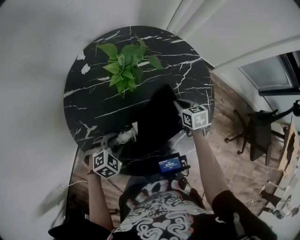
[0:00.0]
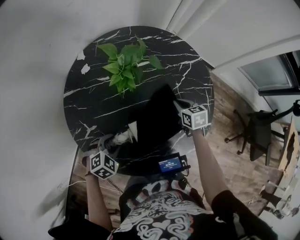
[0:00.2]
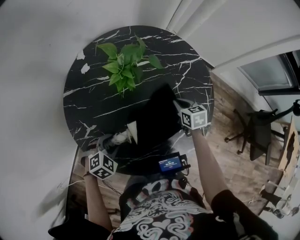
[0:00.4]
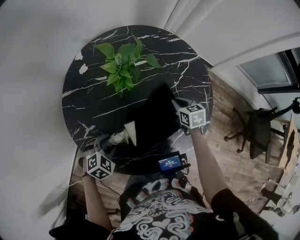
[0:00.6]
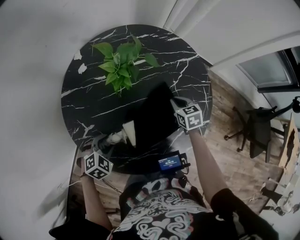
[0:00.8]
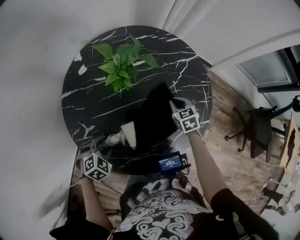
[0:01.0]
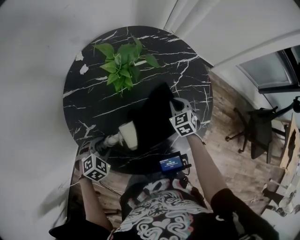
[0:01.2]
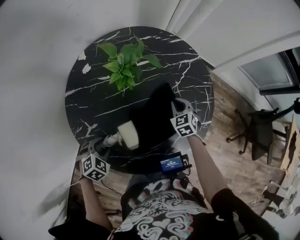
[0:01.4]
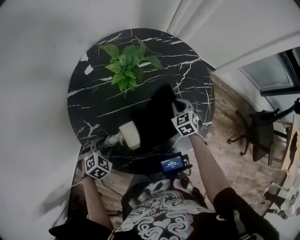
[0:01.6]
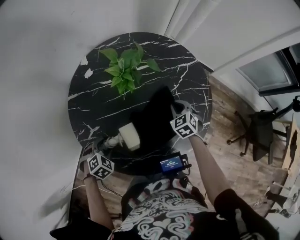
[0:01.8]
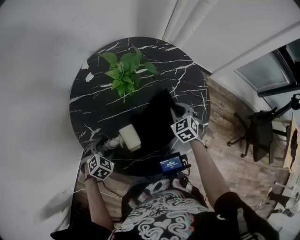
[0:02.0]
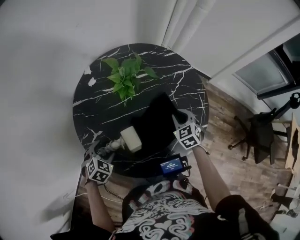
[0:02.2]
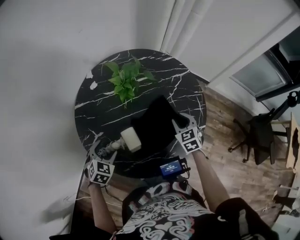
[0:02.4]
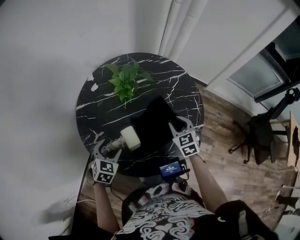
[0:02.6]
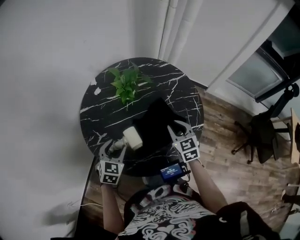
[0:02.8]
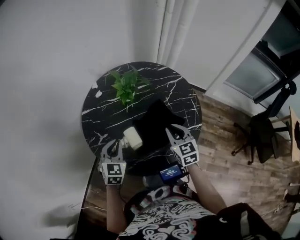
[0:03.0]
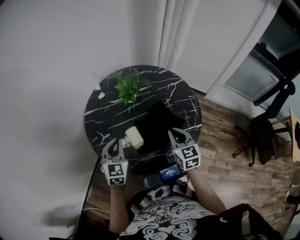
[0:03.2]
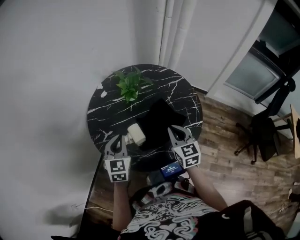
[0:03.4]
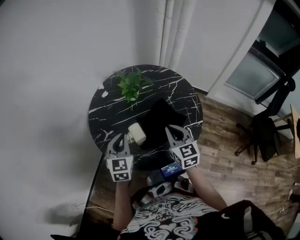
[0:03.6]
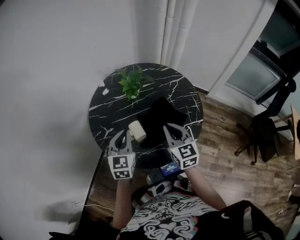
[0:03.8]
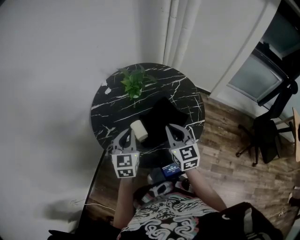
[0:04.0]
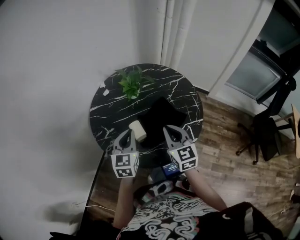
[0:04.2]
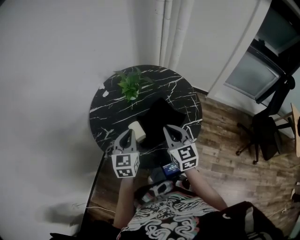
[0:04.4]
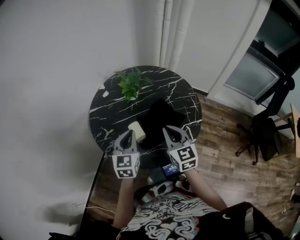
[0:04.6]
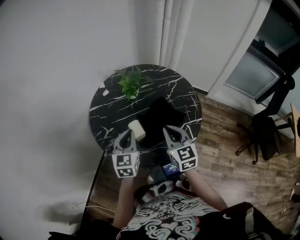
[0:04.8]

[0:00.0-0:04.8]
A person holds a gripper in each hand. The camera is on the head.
0:00.0 to 0:01.6: The left gripper moves to the left, some 5 cm, while the right gripper rotates approximately 30 degrees.
0:01.6 to 0:03.2: The left gripper moves upward, about 20 cm, tilts its fingers roughly 50 degrees upward, and closes up, while the right gripper heads upward and backward, covering roughly 25 cm, and rotates about 30 degrees.
0:03.2 to 0:04.8: The left gripper changes place by roughly 5 cm. Meanwhile the right gripper heads upward, covering about 5 cm.

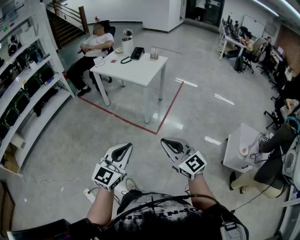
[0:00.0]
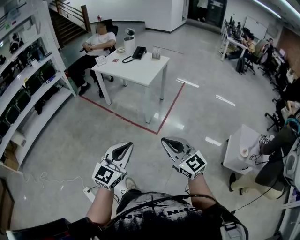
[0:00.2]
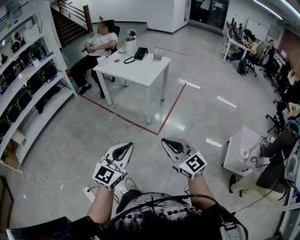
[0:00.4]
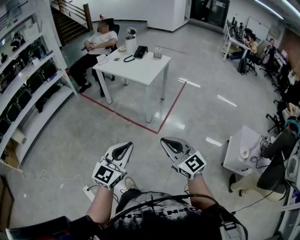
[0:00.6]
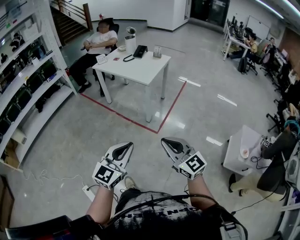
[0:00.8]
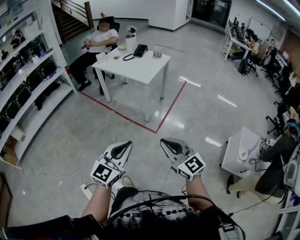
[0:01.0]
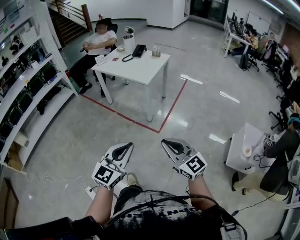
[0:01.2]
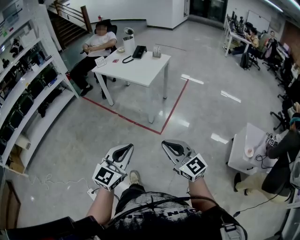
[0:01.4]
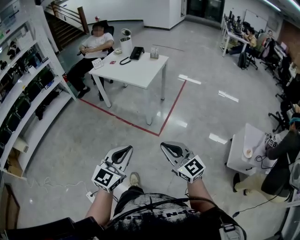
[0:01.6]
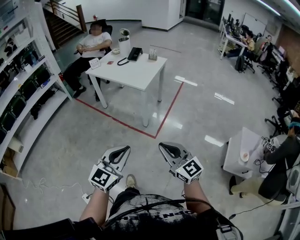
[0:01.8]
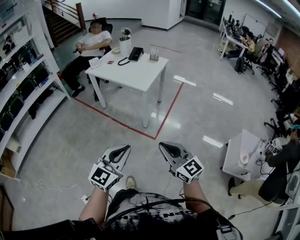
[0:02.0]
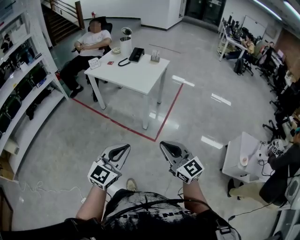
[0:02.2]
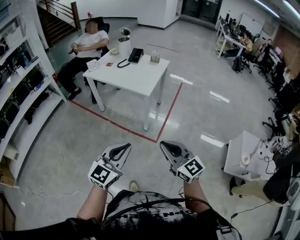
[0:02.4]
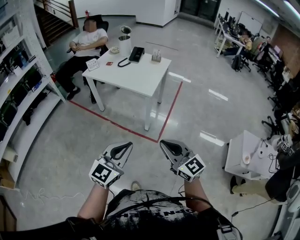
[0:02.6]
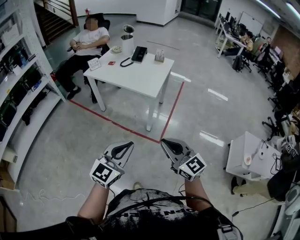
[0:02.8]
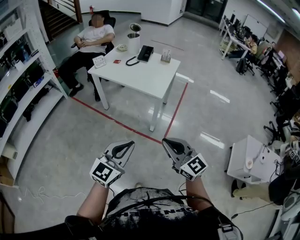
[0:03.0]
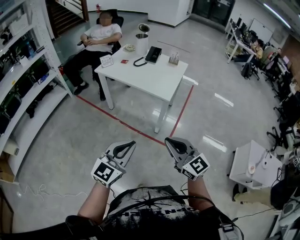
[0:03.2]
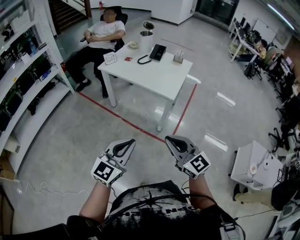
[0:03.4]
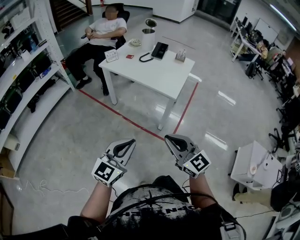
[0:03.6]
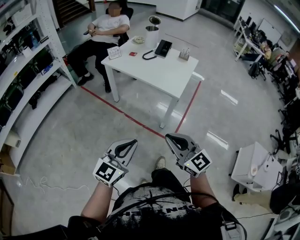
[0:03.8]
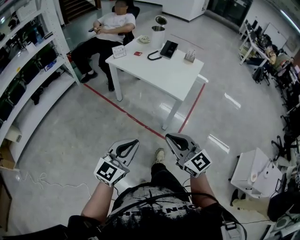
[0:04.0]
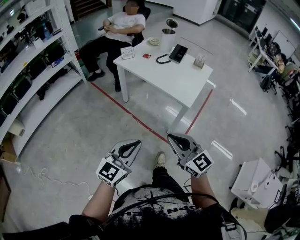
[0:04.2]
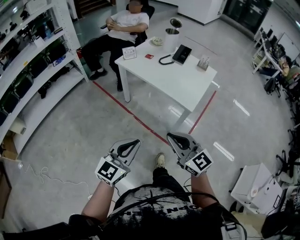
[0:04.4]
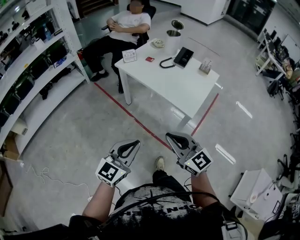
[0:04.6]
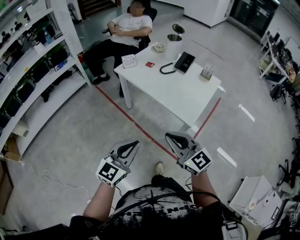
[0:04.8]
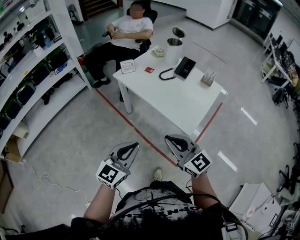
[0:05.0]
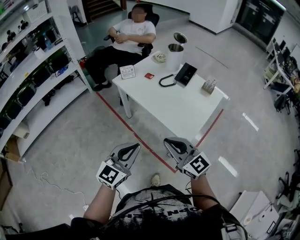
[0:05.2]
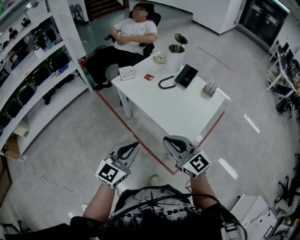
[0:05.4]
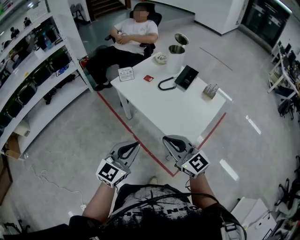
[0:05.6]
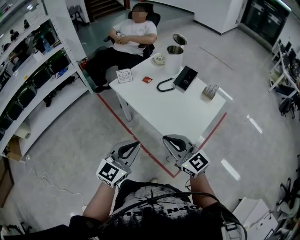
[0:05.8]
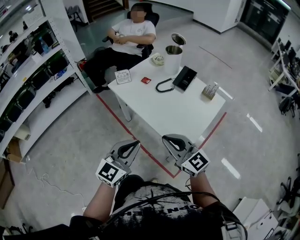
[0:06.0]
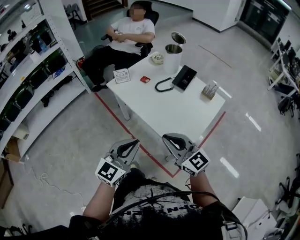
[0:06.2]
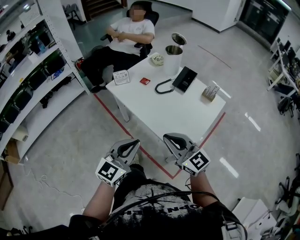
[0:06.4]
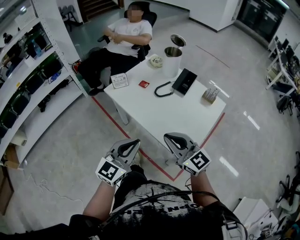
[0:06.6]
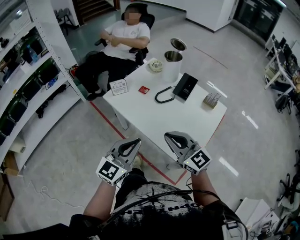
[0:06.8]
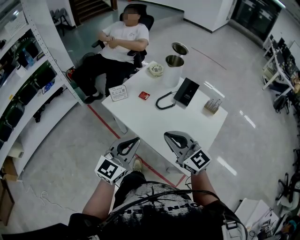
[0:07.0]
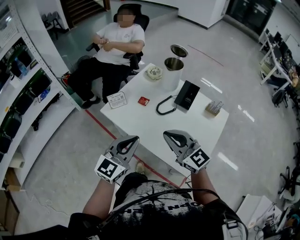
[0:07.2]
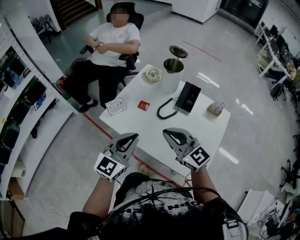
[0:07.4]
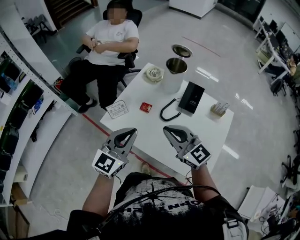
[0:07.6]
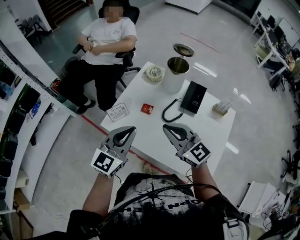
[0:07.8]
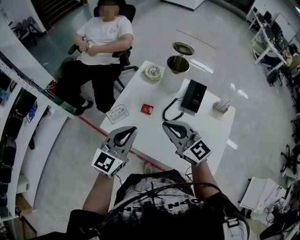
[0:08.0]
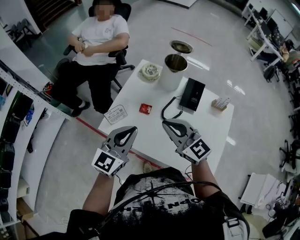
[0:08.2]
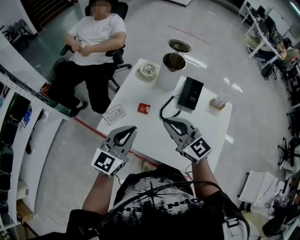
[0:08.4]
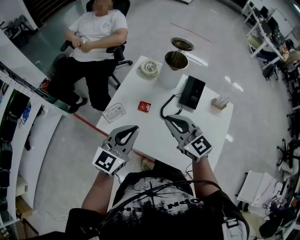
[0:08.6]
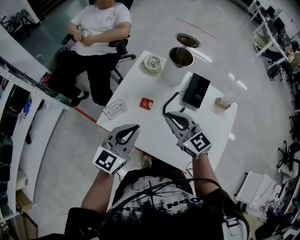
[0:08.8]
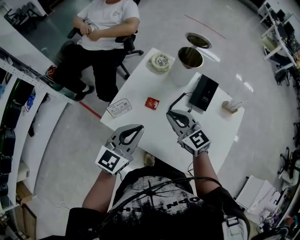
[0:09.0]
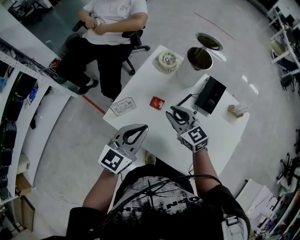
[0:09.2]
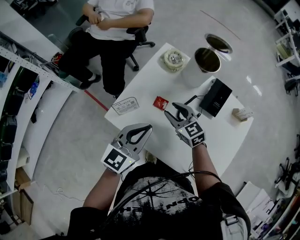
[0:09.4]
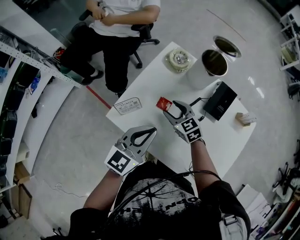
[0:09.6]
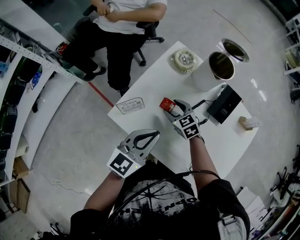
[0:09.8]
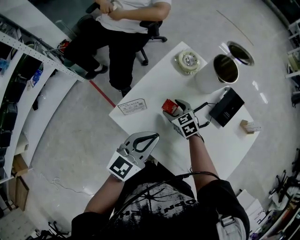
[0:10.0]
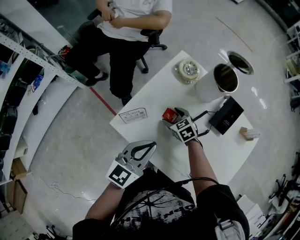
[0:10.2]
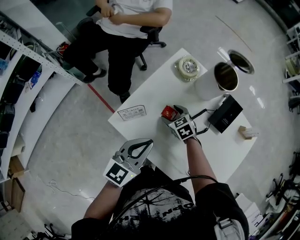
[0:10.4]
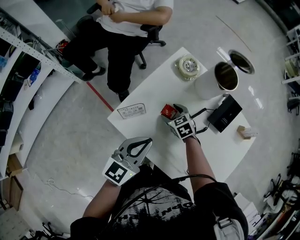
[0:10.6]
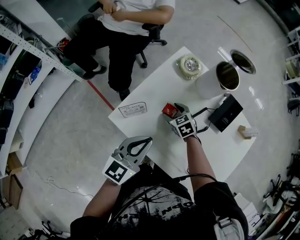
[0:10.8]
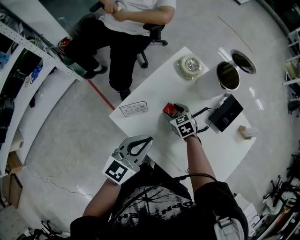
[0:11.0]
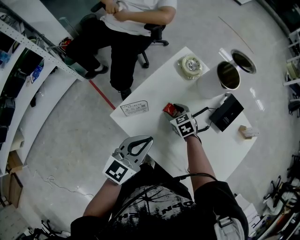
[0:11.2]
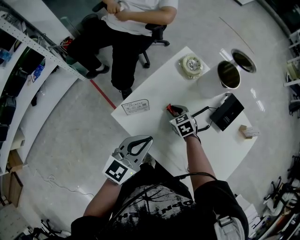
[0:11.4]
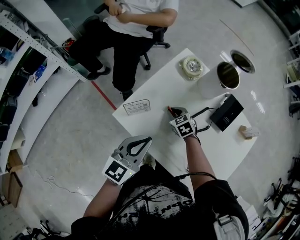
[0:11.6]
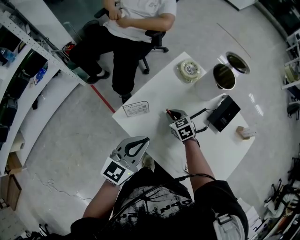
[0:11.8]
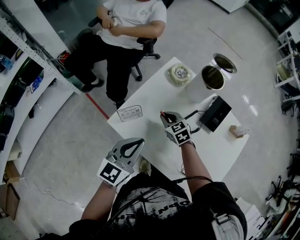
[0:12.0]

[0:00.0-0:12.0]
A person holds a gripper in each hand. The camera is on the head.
0:00.0 to 0:01.6: The right gripper shifts by roughly 5 cm. The left gripper ends up about 5 cm from where it was.
0:01.6 to 0:03.0: Both grippers travel together forward and to the left, approximately 25 cm.
0:03.0 to 0:04.4: Both grippers move forward and to the left, about 15 cm.
0:04.4 to 0:06.0: The two grippers go roughly 30 cm forward and to the right.
0:06.0 to 0:07.6: The grippers both shift forward by some 35 cm.
0:07.6 to 0:09.0: The left gripper travels forward and downward by about 10 cm, while the right gripper goes about 15 cm forward and downward.
0:09.0 to 0:10.4: The left gripper goes approximately 5 cm downward, while the right gripper is displaced downward and forward by approximately 25 cm, tilts its fingers roughly 40 degrees downward, and opens up.
0:10.4 to 0:12.0: The right gripper travels upward by roughly 5 cm, and closes.

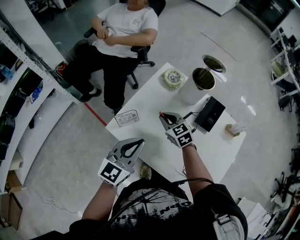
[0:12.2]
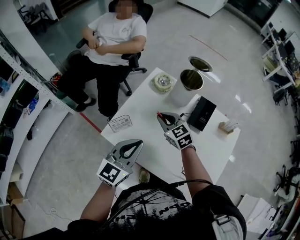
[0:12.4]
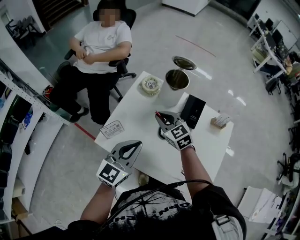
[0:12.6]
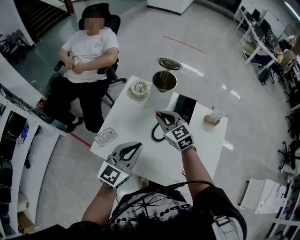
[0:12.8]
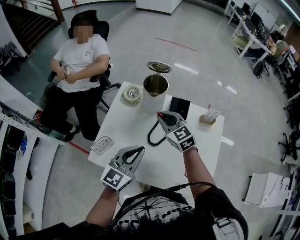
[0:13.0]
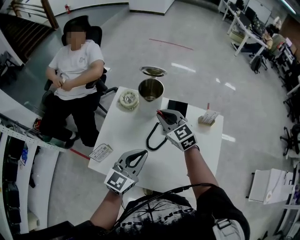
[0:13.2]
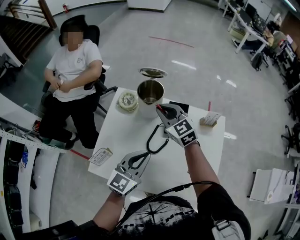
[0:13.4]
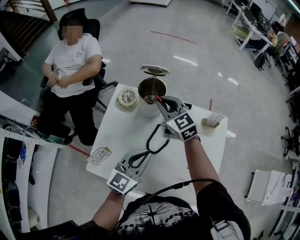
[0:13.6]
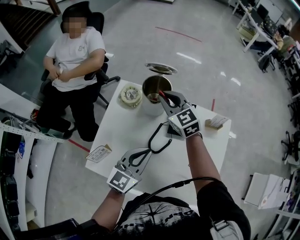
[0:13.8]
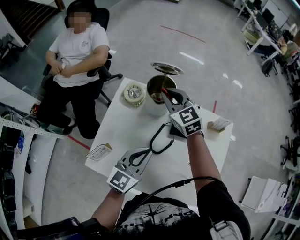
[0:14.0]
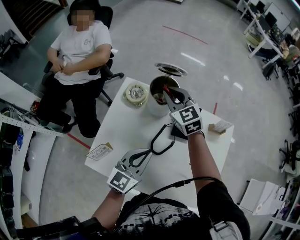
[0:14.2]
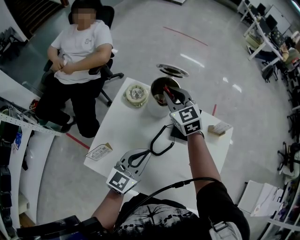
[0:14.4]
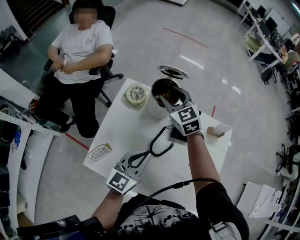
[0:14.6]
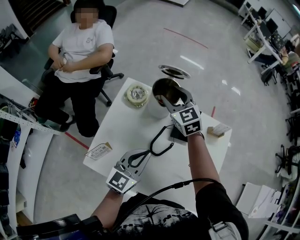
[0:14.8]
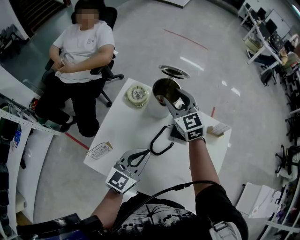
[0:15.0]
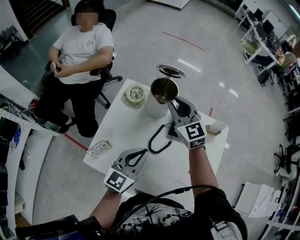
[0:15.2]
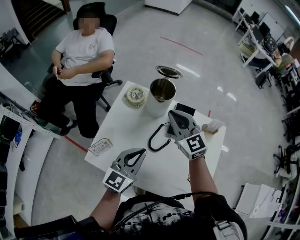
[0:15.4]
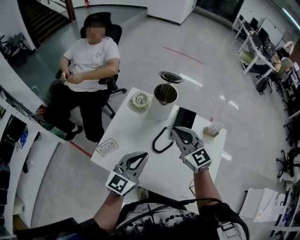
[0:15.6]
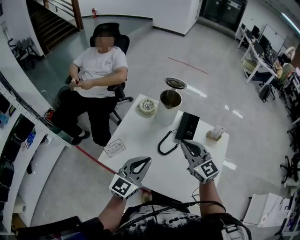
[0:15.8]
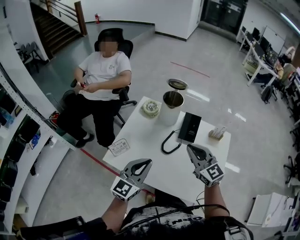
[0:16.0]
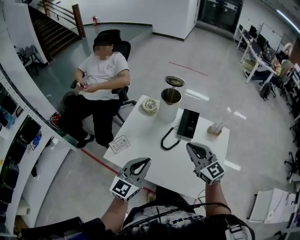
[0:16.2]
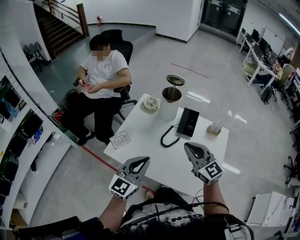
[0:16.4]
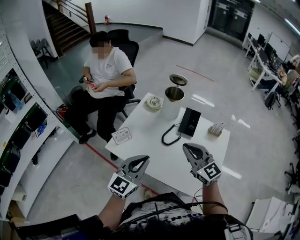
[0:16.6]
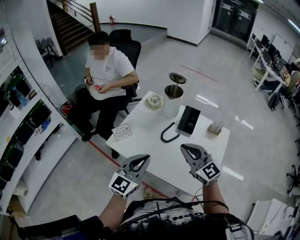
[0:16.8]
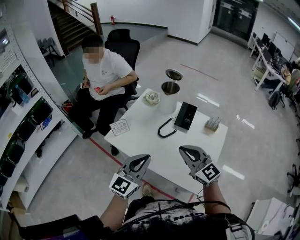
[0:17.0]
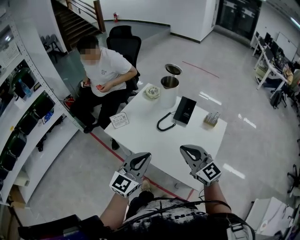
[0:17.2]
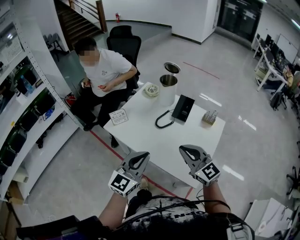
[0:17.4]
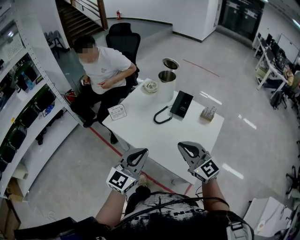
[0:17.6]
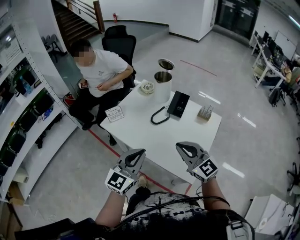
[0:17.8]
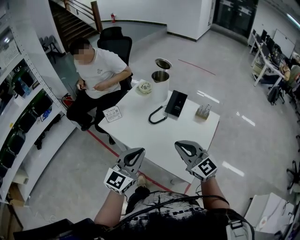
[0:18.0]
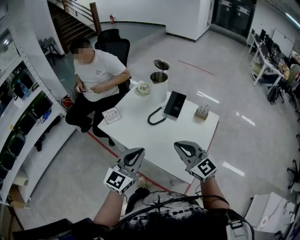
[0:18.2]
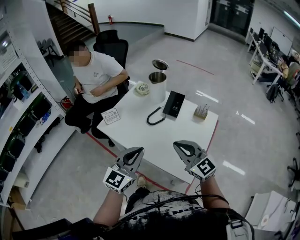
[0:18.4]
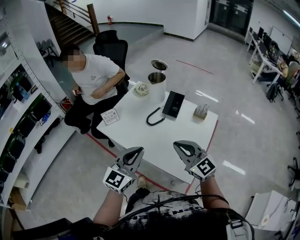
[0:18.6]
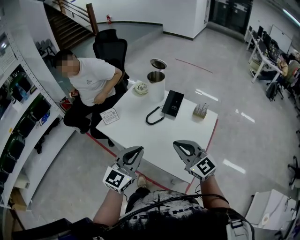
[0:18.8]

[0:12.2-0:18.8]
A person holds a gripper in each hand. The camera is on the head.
0:12.2 to 0:13.8: The left gripper travels to the right and forward by roughly 20 cm, and turns by approximately 20 degrees; the right gripper heads forward, to the right and upward, covering roughly 25 cm, and rotates about 30 degrees.
0:13.8 to 0:15.4: The left gripper moves approximately 5 cm; the right gripper is displaced backward by roughly 10 cm, and opens and closes again.
0:15.4 to 0:17.2: The grippers both shift backward by approximately 30 cm. The right gripper turns by approximately 20 degrees.
0:17.2 to 0:18.8: The right gripper ends up approximately 5 cm from where it was; the left gripper shifts by roughly 5 cm.
